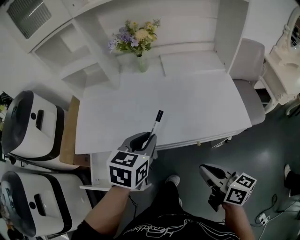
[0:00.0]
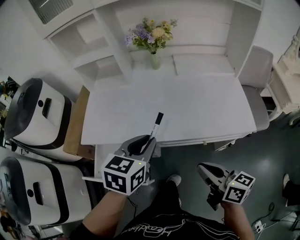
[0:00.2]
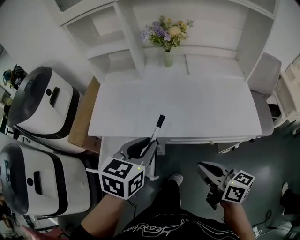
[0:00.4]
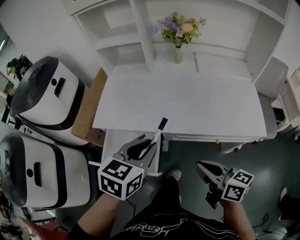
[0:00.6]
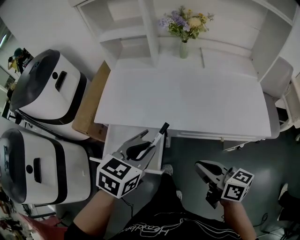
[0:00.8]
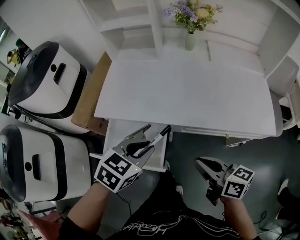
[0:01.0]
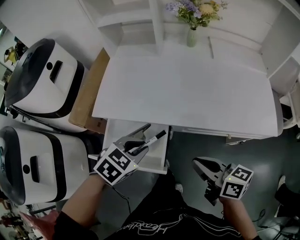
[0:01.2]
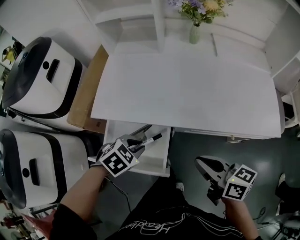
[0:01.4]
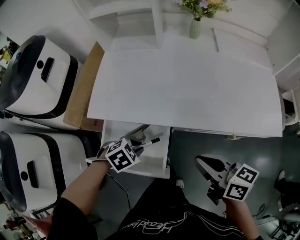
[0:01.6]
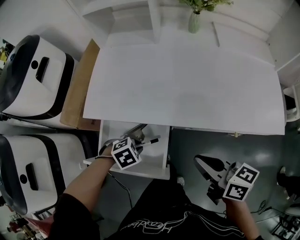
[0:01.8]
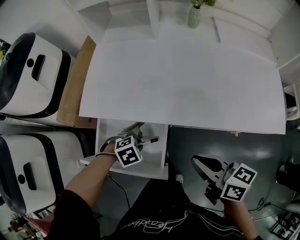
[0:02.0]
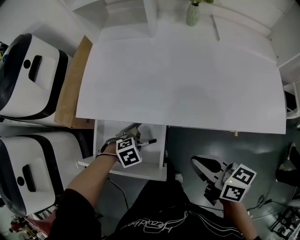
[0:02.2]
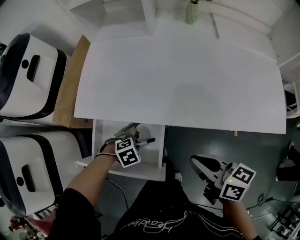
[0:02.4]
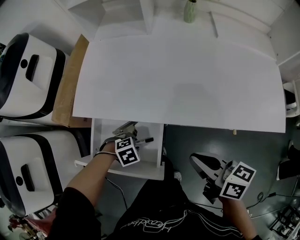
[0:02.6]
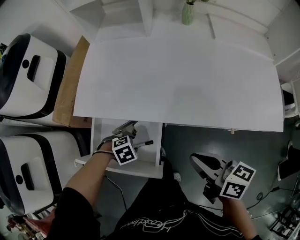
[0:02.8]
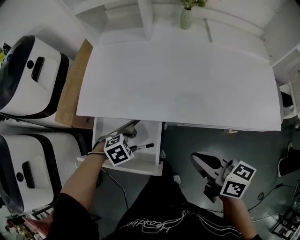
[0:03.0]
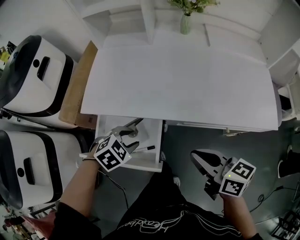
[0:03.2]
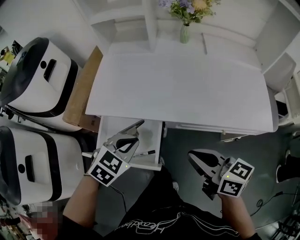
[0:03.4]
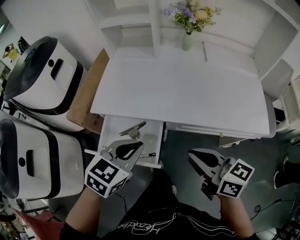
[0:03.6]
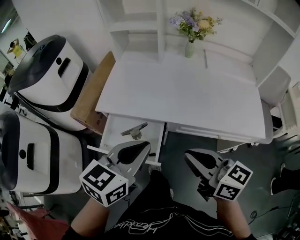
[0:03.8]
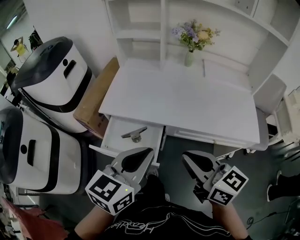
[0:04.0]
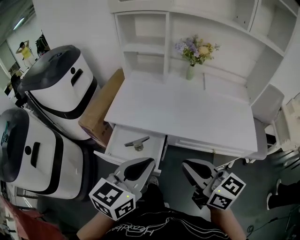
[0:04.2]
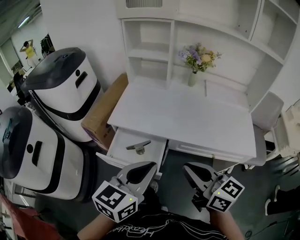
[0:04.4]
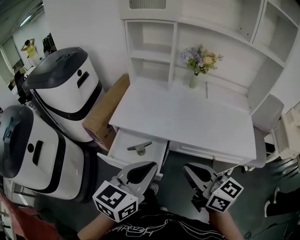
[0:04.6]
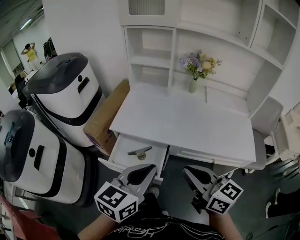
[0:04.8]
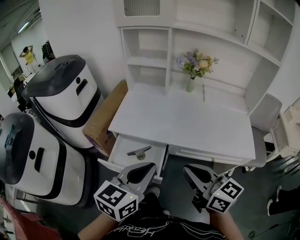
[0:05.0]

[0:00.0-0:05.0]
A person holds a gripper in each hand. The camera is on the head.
0:00.0 to 0:01.6: The right gripper moves approximately 20 cm, and swivels about 20 degrees. Meanwhile the left gripper shifts by approximately 35 cm, and angles its fingers downward, by approximately 40 degrees.
0:01.6 to 0:03.4: The left gripper moves upward, some 10 cm, rotates approximately 30 degrees, and opens, then closes again.
0:03.4 to 0:05.0: The right gripper heads upward and backward, covering approximately 15 cm, while the left gripper is displaced upward and backward by some 25 cm, and points its fingers some 40 degrees further upward.

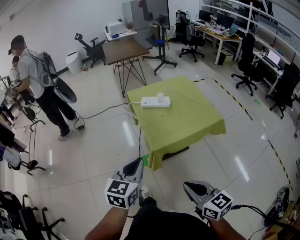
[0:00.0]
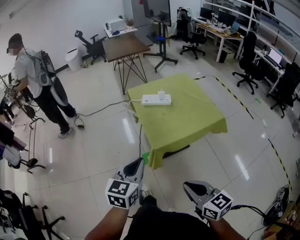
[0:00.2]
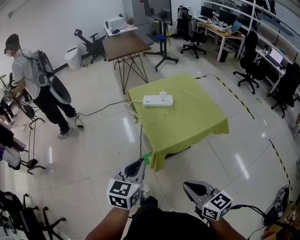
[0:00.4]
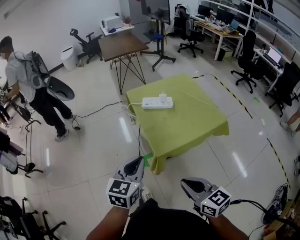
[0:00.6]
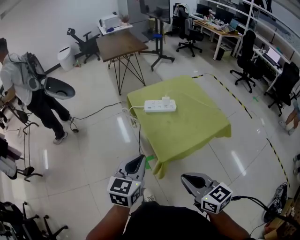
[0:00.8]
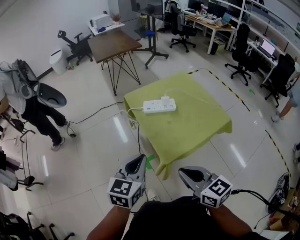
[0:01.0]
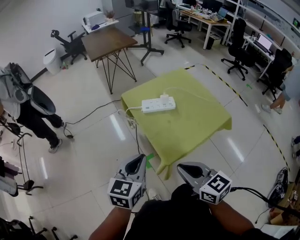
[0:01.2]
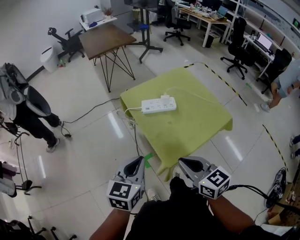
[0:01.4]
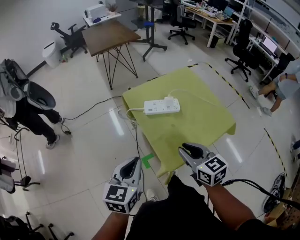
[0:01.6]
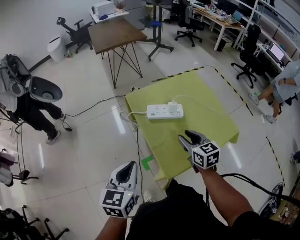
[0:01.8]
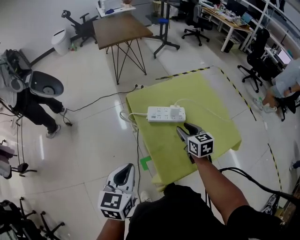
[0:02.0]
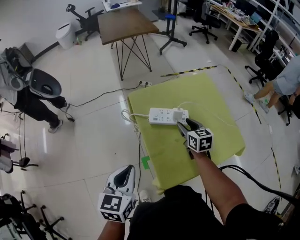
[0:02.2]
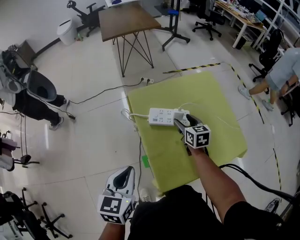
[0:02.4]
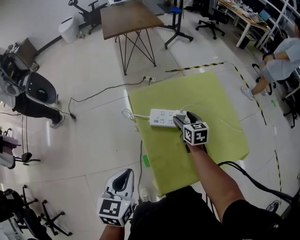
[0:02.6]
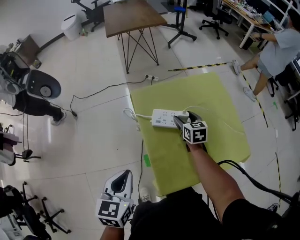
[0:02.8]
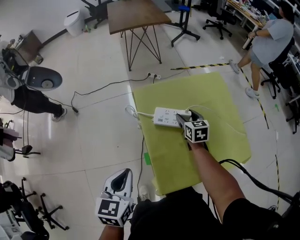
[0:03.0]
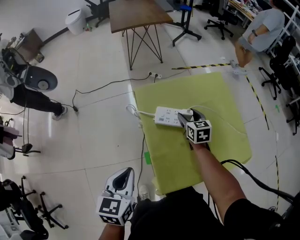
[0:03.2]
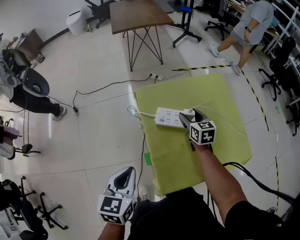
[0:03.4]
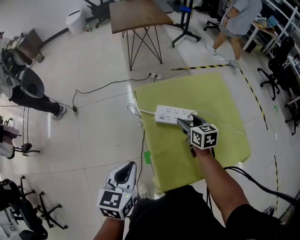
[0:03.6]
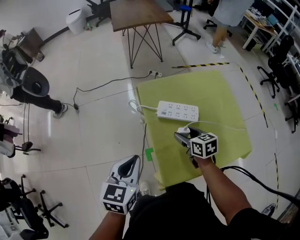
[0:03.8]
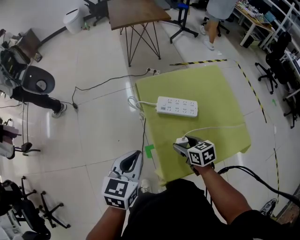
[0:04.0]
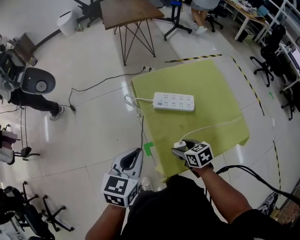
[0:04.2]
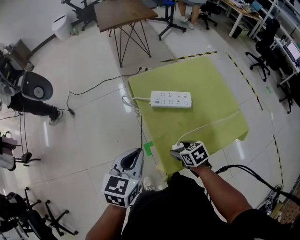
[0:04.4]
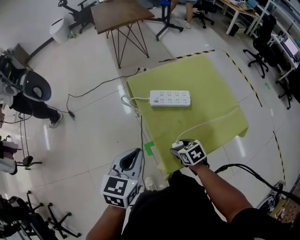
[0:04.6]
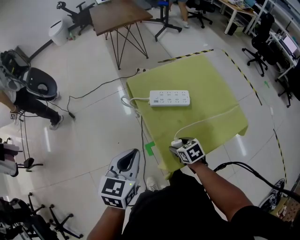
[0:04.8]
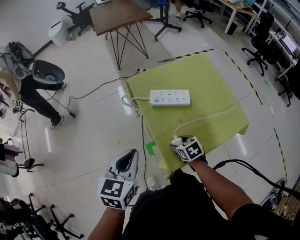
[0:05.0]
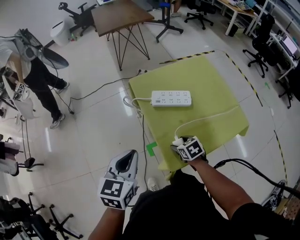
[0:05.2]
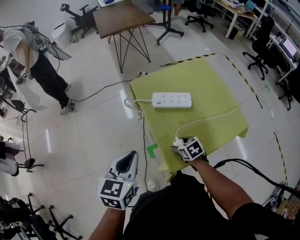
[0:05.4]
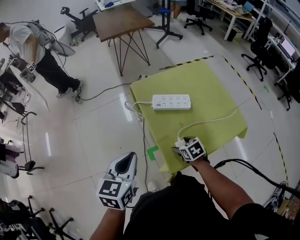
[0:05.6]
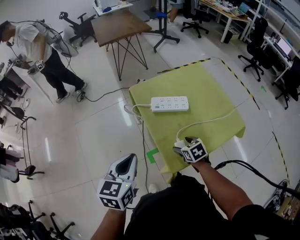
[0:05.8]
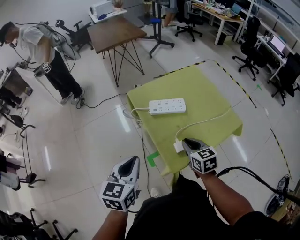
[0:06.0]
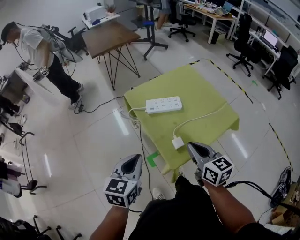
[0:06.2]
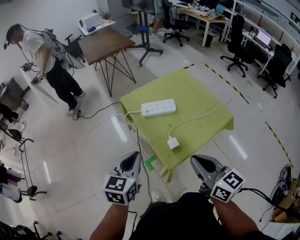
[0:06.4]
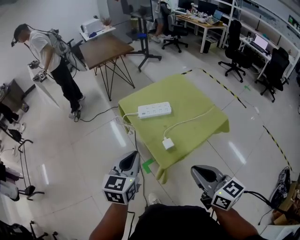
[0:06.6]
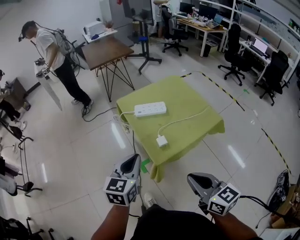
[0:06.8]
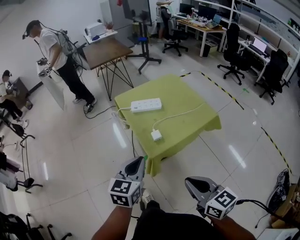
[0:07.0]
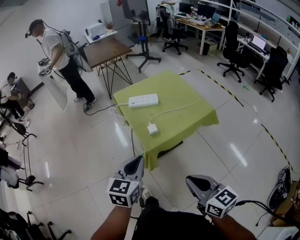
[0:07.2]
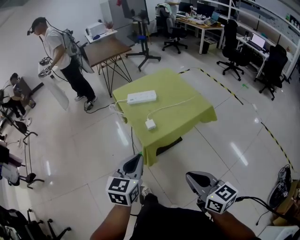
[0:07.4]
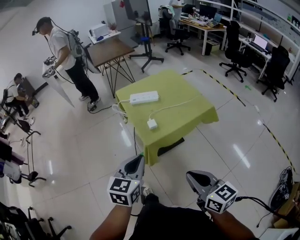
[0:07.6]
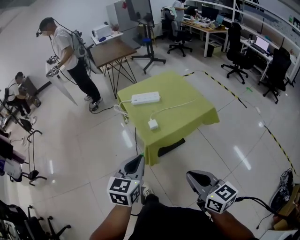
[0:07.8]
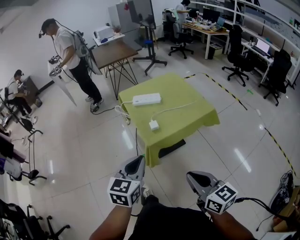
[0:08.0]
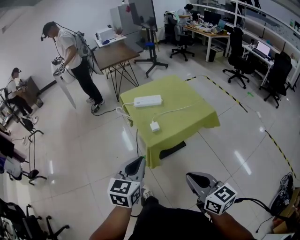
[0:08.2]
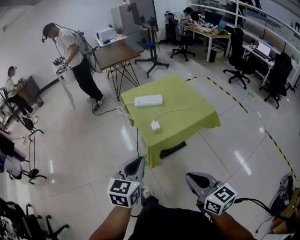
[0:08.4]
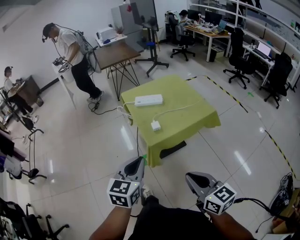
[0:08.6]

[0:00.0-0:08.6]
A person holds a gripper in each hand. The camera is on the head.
0:00.0 to 0:01.4: Both grippers move forward, approximately 25 cm.
0:01.4 to 0:02.8: The right gripper goes roughly 50 cm forward and downward, and opens up, while the left gripper is displaced forward and downward by roughly 10 cm, and rotates some 20 degrees.
0:02.8 to 0:04.4: The right gripper heads backward, covering approximately 25 cm, and swivels about 30 degrees.
0:04.4 to 0:05.8: The left gripper ends up some 5 cm from where it was.
0:05.8 to 0:07.2: The left gripper heads backward and to the right, covering some 25 cm. Meanwhile the right gripper moves backward and upward, approximately 50 cm, angles its fingers upward, by approximately 40 degrees, and closes up.
0:07.2 to 0:08.6: The left gripper shifts about 5 cm backward.

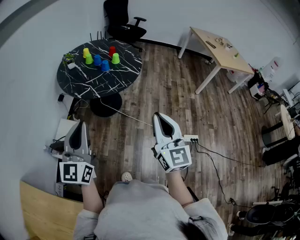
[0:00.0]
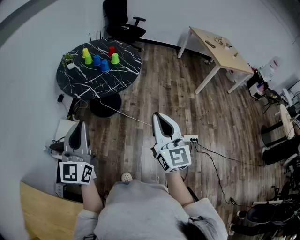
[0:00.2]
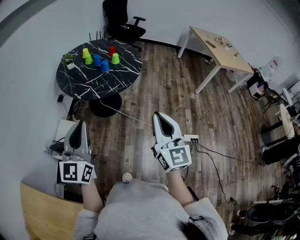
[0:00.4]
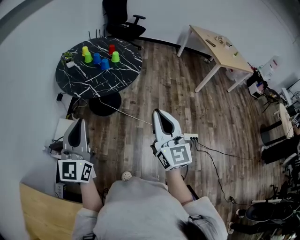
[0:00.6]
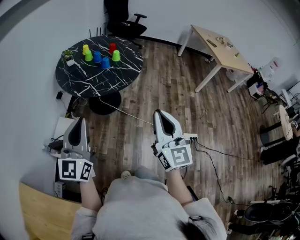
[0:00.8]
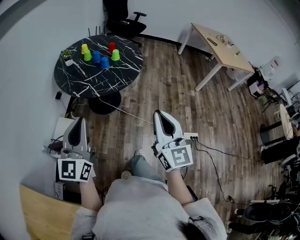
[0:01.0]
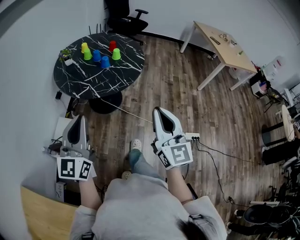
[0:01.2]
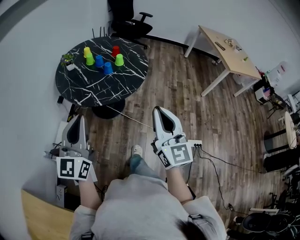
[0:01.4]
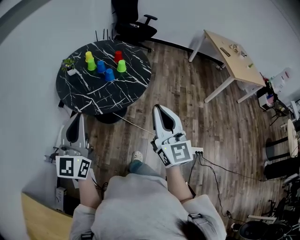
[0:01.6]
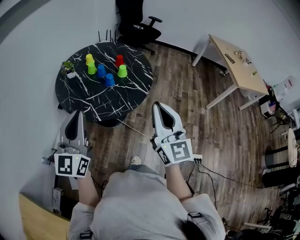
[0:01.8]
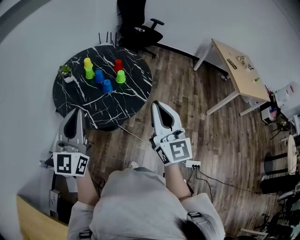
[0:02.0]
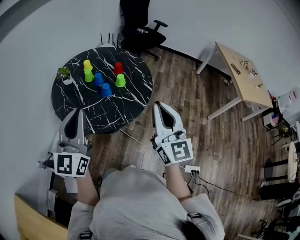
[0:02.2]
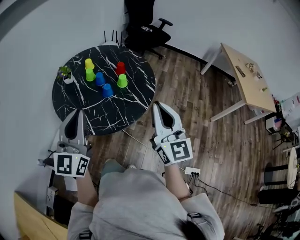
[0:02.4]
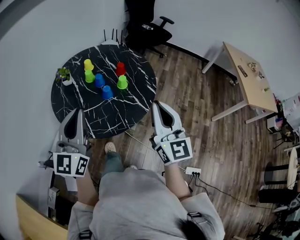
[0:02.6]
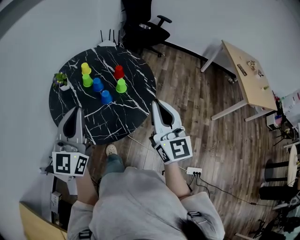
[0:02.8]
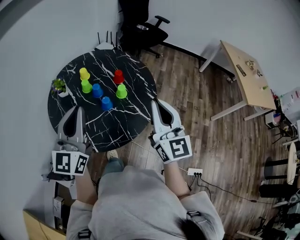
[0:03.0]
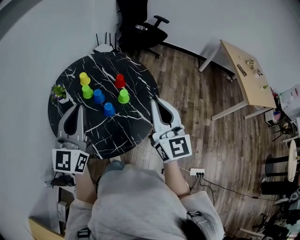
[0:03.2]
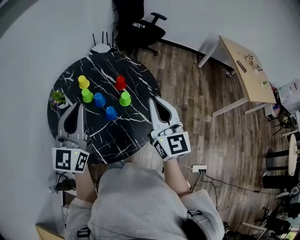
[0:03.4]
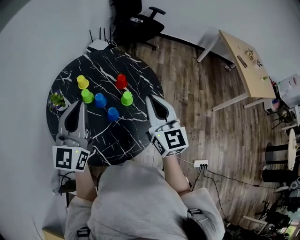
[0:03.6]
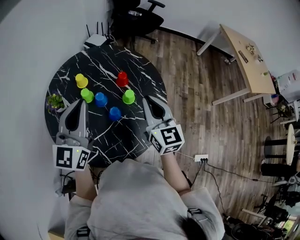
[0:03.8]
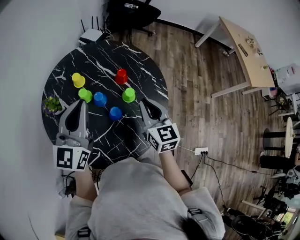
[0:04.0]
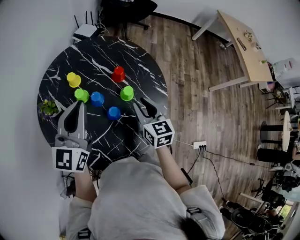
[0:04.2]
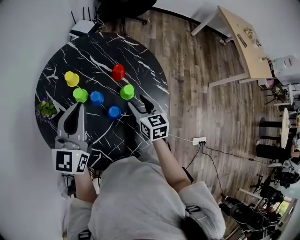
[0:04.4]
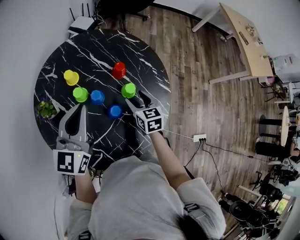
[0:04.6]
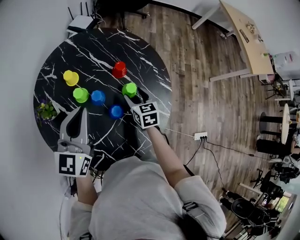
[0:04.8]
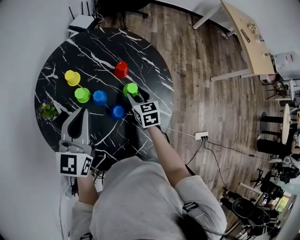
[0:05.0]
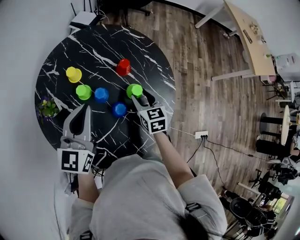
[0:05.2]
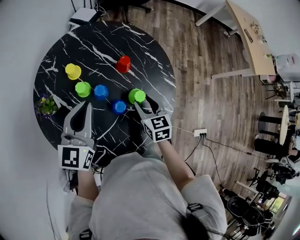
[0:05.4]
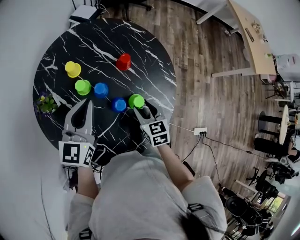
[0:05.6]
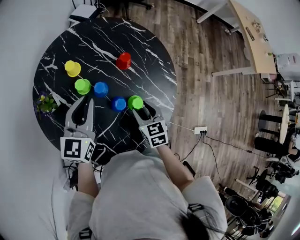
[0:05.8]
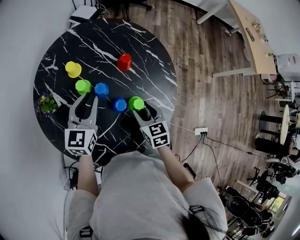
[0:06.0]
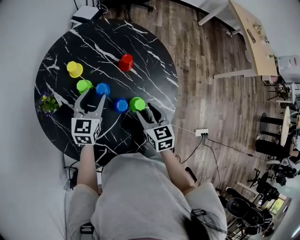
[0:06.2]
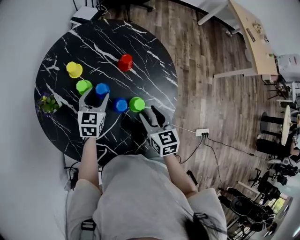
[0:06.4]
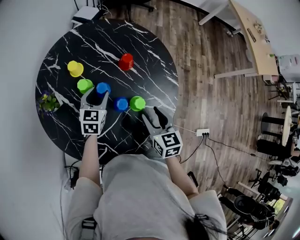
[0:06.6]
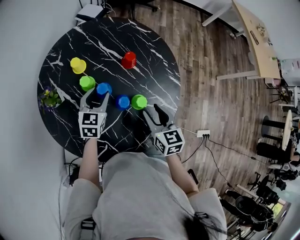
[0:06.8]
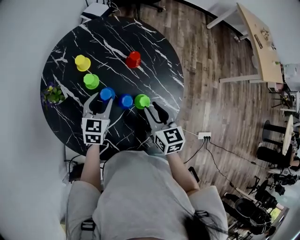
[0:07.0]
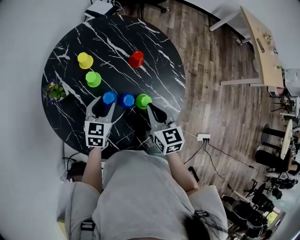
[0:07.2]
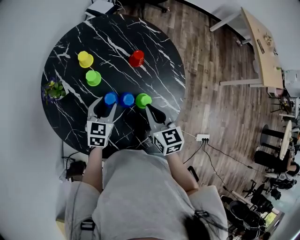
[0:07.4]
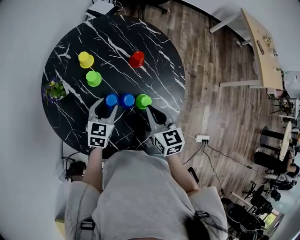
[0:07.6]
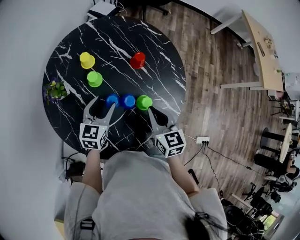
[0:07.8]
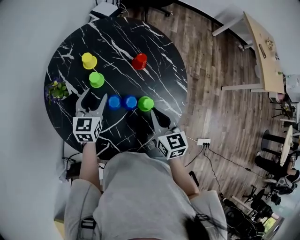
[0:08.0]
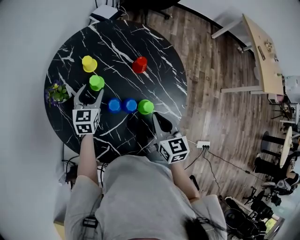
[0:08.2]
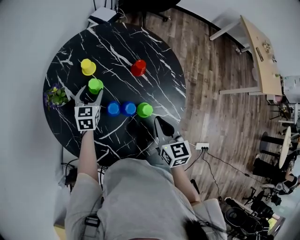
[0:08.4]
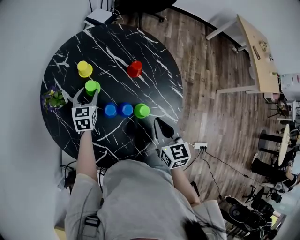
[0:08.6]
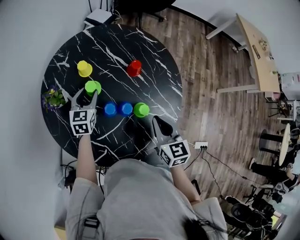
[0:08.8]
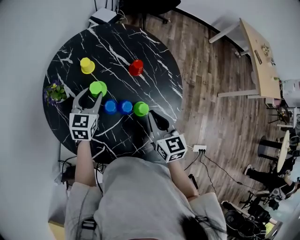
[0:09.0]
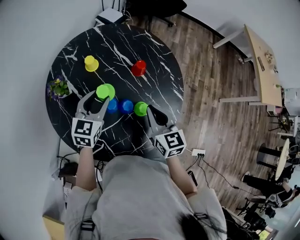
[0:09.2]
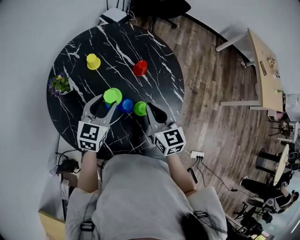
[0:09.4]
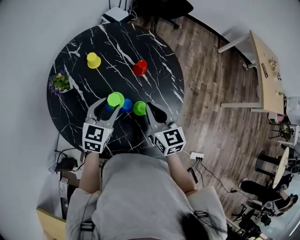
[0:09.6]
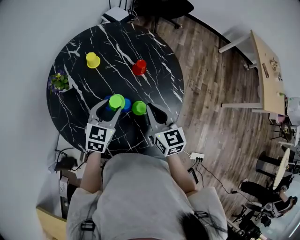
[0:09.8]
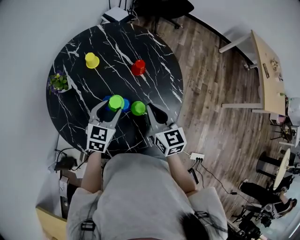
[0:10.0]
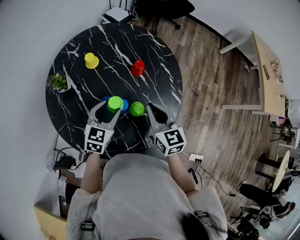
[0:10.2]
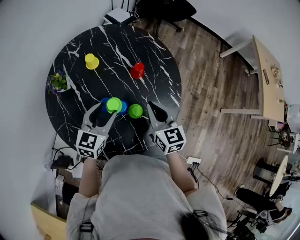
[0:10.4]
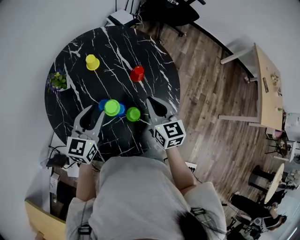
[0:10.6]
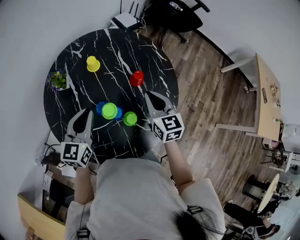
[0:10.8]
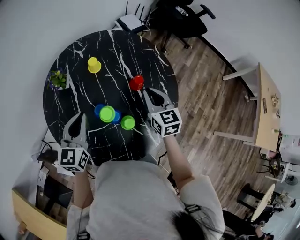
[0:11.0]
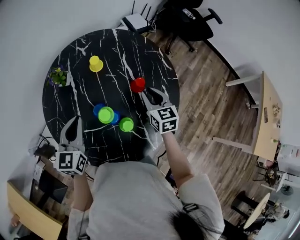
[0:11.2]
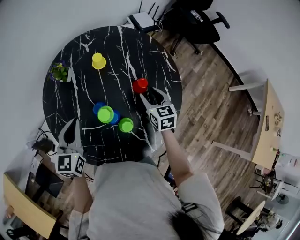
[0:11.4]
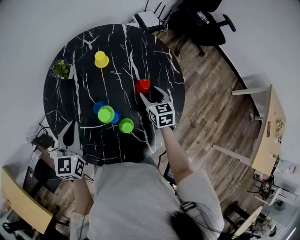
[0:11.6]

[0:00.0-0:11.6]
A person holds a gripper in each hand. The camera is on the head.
0:00.0 to 0:01.4: Both grippers travel together forward, some 15 cm.
0:01.4 to 0:02.8: The two grippers go roughly 30 cm forward.
0:02.8 to 0:04.4: The left gripper shifts some 30 cm forward and downward, and swivels some 20 degrees. The right gripper shifts approximately 40 cm downward, forward and to the left, tilts its fingers about 40 degrees downward, and opens up.
0:04.4 to 0:05.8: The right gripper is displaced downward and backward by approximately 10 cm. Meanwhile the left gripper travels downward by some 10 cm.
0:05.8 to 0:07.2: The left gripper goes some 15 cm downward, rotates approximately 20 degrees, and opens, while the right gripper shifts some 10 cm upward, and closes up.
0:07.2 to 0:08.8: The left gripper shifts roughly 10 cm forward and to the left.
0:08.8 to 0:10.2: The left gripper is displaced to the right, backward and upward by approximately 15 cm; the right gripper moves some 5 cm.
0:10.2 to 0:11.6: The right gripper moves some 20 cm, changes its angle by some 30 degrees, and opens up. Meanwhile the left gripper changes place by roughly 15 cm, turns by roughly 50 degrees, and closes.
